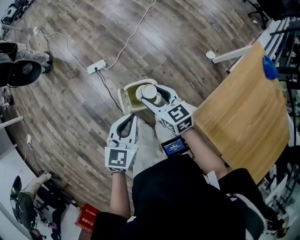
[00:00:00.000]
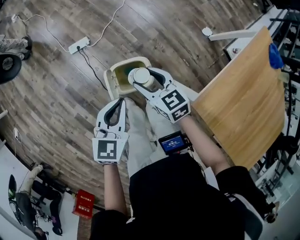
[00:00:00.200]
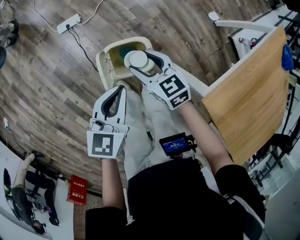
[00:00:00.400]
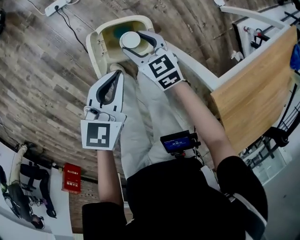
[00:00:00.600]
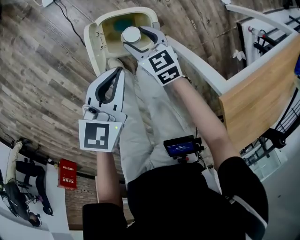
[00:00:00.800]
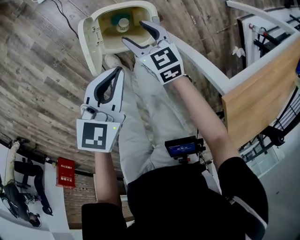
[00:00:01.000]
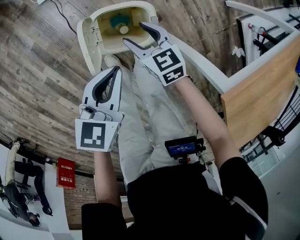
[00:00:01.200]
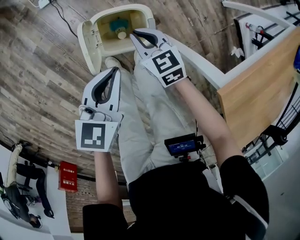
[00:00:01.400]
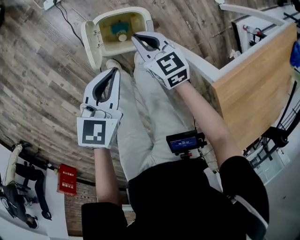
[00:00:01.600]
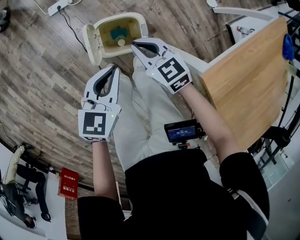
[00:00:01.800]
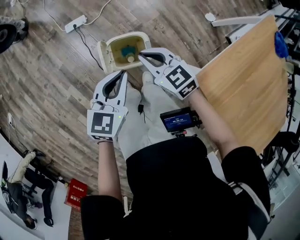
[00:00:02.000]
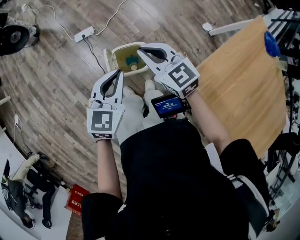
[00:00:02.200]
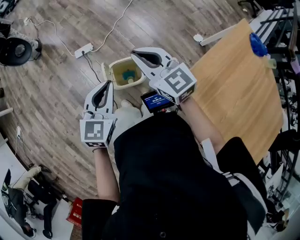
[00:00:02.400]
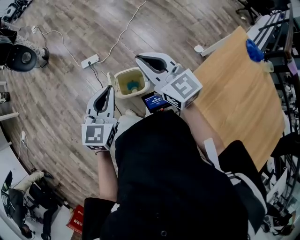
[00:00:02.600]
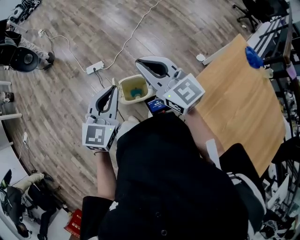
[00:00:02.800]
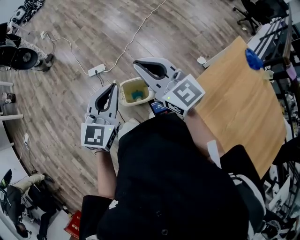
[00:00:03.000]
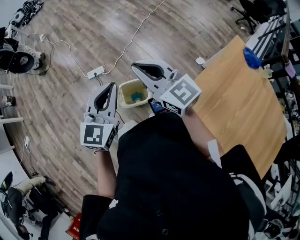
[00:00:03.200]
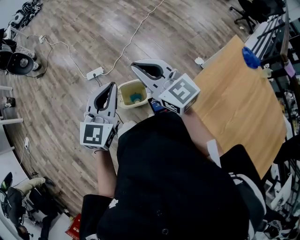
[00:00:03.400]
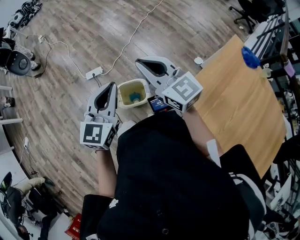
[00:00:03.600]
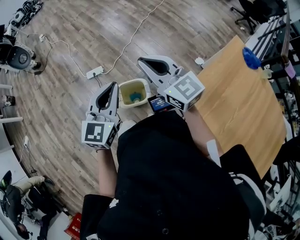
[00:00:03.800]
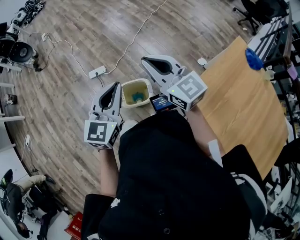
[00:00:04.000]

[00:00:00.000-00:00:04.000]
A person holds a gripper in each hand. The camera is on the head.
00:00:00.000 to 00:00:01.400: Both grippers move downward, about 30 cm. The right gripper closes up.
00:00:01.400 to 00:00:02.600: Both grippers travel together upward, approximately 40 cm. The right gripper tips its fingers upward by some 40 degrees. The left gripper changes its angle by roughly 30 degrees.
00:00:02.600 to 00:00:04.000: The left gripper shifts approximately 5 cm upward. Meanwhile the right gripper changes place by some 5 cm.

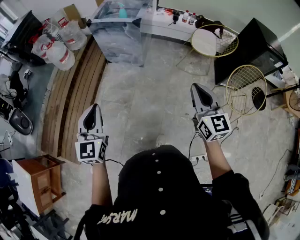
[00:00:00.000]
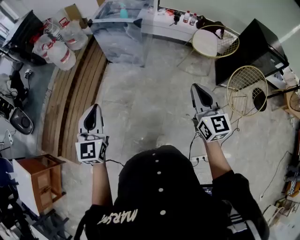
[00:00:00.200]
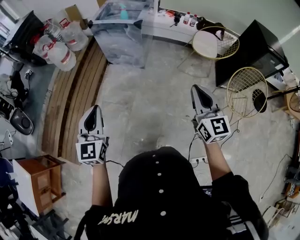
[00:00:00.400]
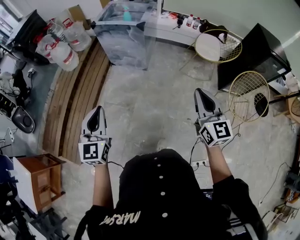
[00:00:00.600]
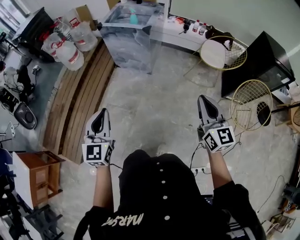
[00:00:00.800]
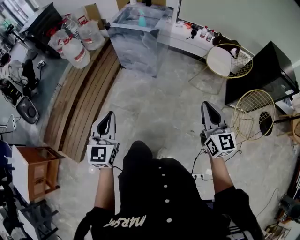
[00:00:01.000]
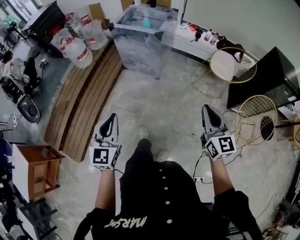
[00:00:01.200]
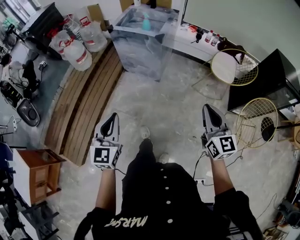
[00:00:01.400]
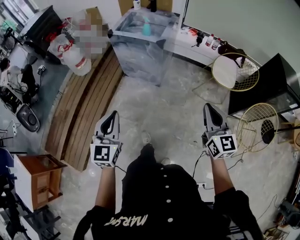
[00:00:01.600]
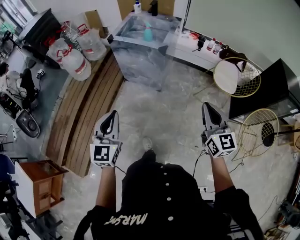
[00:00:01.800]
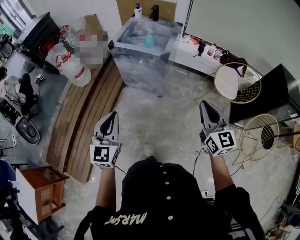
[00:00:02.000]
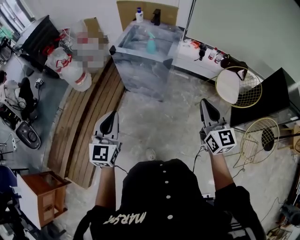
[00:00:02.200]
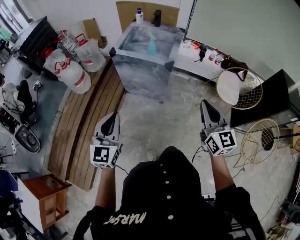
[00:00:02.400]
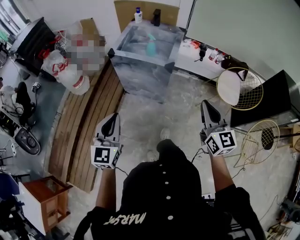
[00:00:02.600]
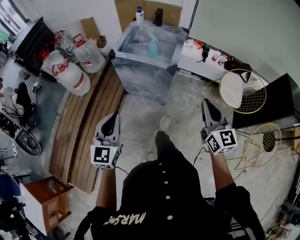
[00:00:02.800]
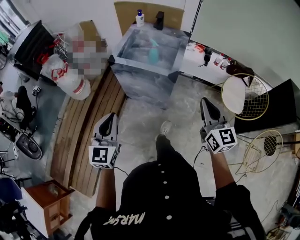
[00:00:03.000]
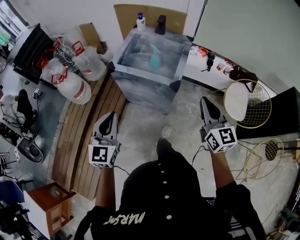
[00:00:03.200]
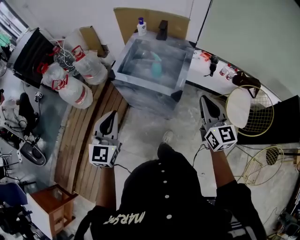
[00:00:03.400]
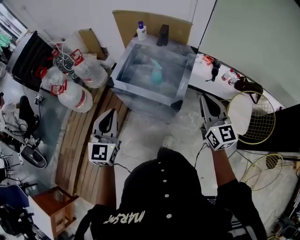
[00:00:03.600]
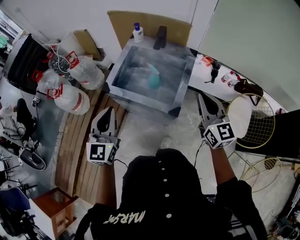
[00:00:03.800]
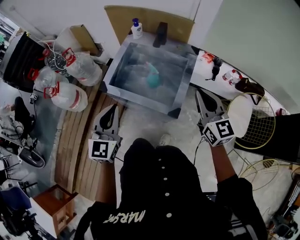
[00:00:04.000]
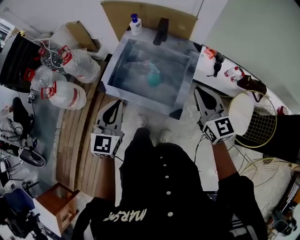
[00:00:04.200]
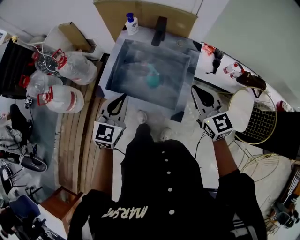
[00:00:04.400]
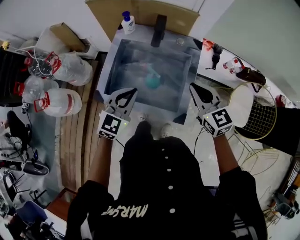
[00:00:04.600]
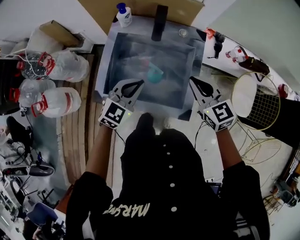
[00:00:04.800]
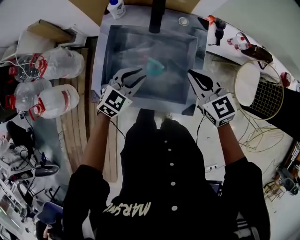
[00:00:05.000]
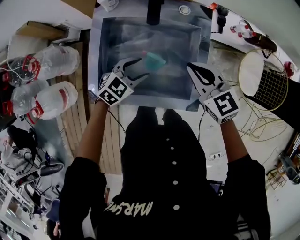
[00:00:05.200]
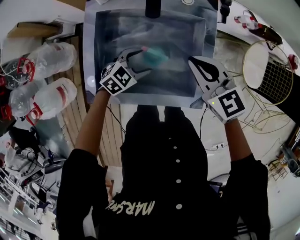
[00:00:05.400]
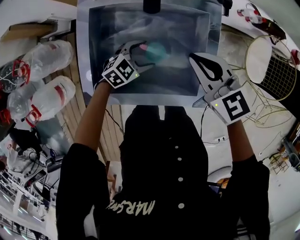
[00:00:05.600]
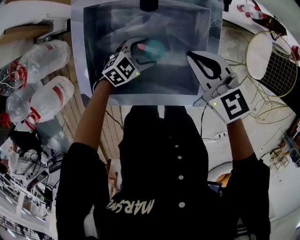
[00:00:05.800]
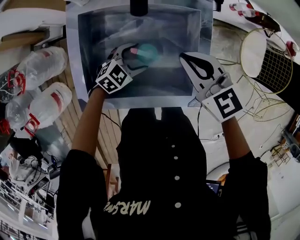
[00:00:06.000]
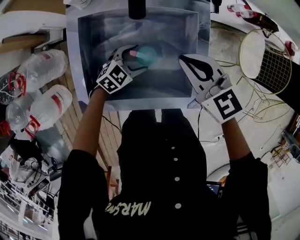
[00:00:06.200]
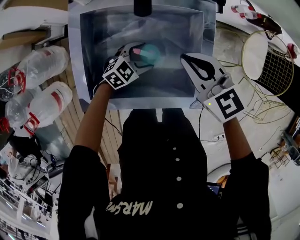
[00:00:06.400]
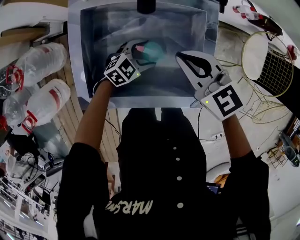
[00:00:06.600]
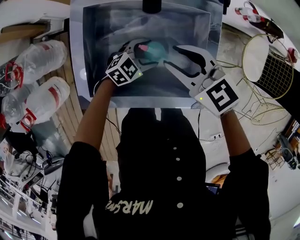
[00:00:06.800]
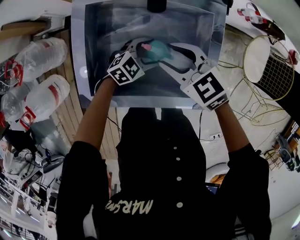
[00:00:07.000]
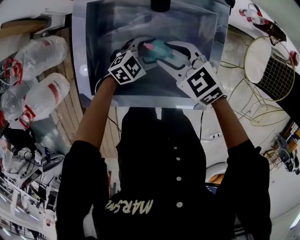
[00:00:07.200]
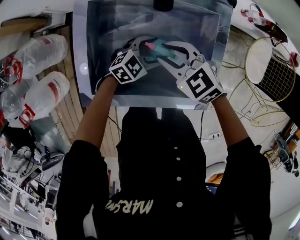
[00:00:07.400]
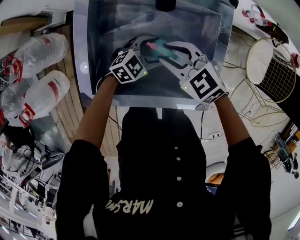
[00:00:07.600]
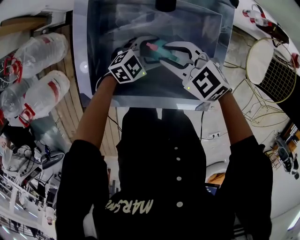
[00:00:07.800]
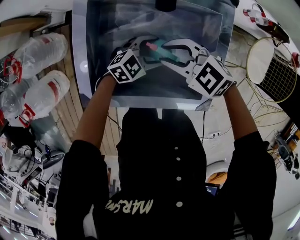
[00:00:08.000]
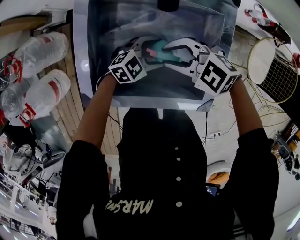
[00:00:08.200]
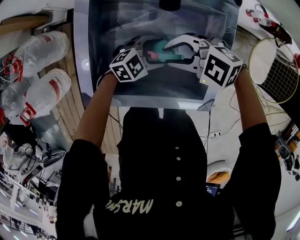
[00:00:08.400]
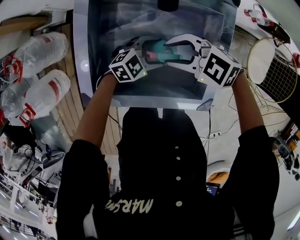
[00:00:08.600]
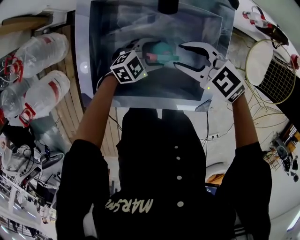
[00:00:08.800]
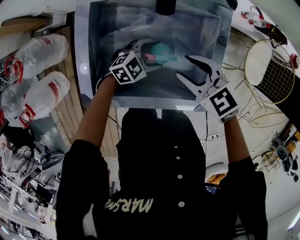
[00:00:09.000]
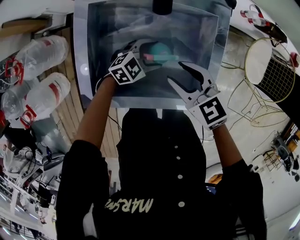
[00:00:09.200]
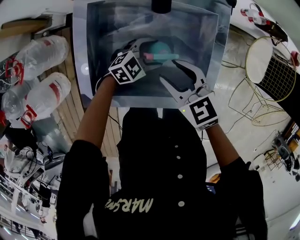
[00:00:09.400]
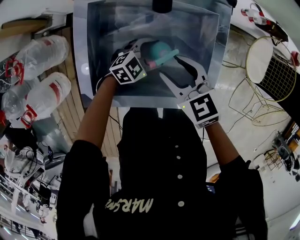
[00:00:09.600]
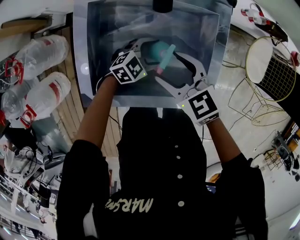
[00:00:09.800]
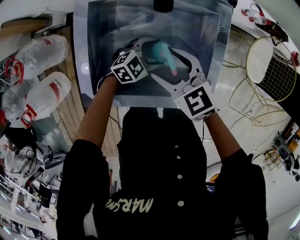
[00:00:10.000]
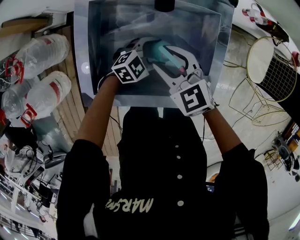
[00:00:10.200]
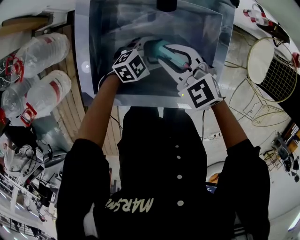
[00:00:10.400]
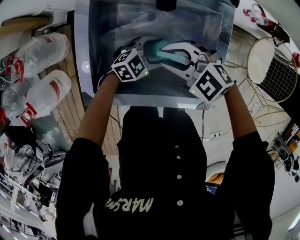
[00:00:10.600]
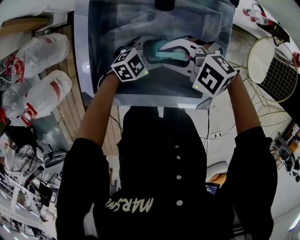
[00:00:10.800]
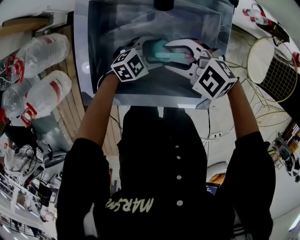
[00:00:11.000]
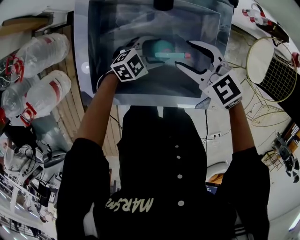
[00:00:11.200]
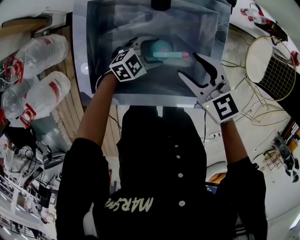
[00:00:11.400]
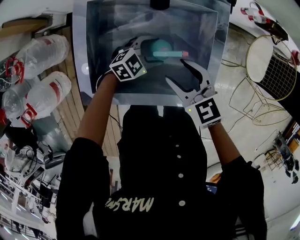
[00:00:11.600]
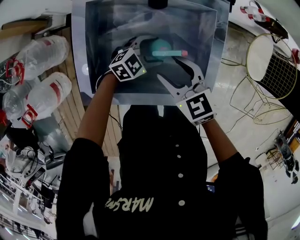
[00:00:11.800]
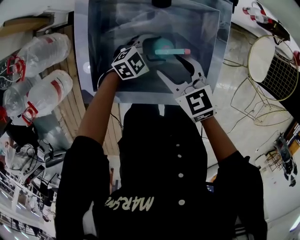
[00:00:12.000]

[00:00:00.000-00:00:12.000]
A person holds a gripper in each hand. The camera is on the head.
00:00:00.000 to 00:00:01.600: Both grippers move forward, approximately 15 cm.
00:00:01.600 to 00:00:03.000: Both grippers move forward, approximately 30 cm.
00:00:03.000 to 00:00:04.400: The two grippers travel together, forward, roughly 40 cm.
00:00:04.400 to 00:00:06.000: The right gripper shifts about 15 cm downward. The left gripper travels downward by roughly 35 cm, swivels roughly 60 degrees, and opens its fingers.
00:00:06.000 to 00:00:07.600: The right gripper travels downward by approximately 10 cm, swivels some 20 degrees, and opens.
00:00:07.600 to 00:00:09.000: The right gripper shifts by some 5 cm.
00:00:09.000 to 00:00:10.400: The right gripper moves some 5 cm.
00:00:10.400 to 00:00:12.000: The right gripper changes its angle by approximately 20 degrees, and opens.

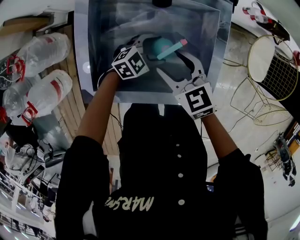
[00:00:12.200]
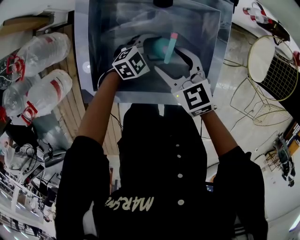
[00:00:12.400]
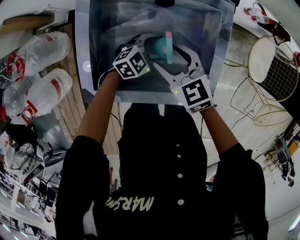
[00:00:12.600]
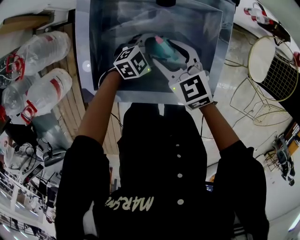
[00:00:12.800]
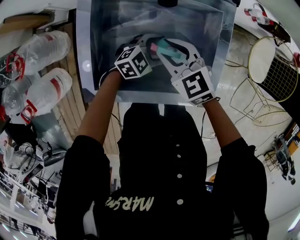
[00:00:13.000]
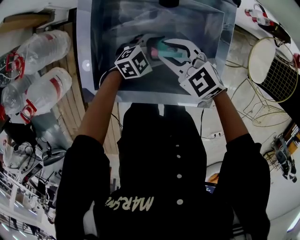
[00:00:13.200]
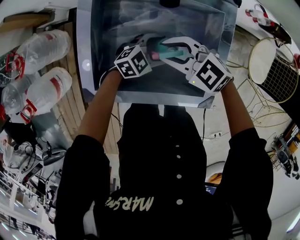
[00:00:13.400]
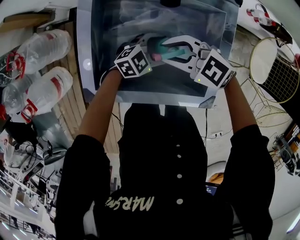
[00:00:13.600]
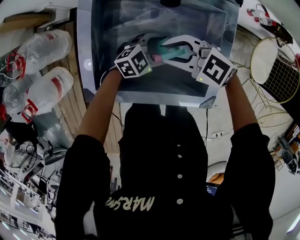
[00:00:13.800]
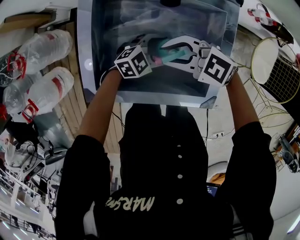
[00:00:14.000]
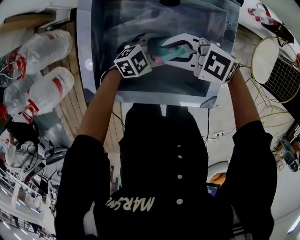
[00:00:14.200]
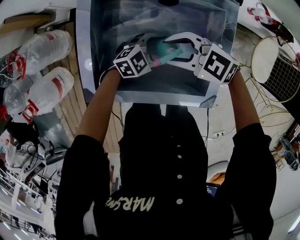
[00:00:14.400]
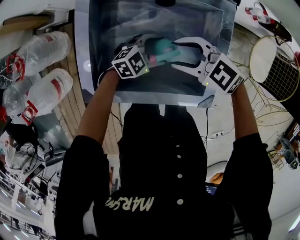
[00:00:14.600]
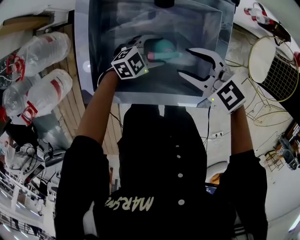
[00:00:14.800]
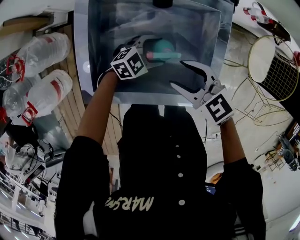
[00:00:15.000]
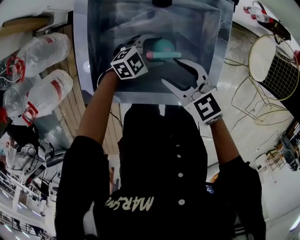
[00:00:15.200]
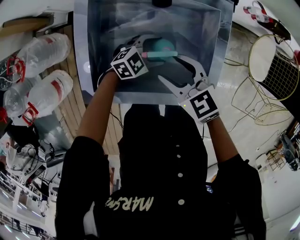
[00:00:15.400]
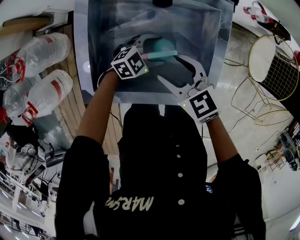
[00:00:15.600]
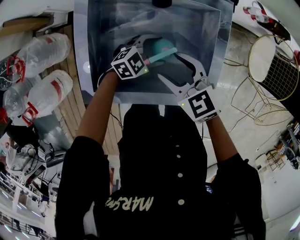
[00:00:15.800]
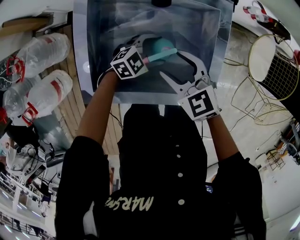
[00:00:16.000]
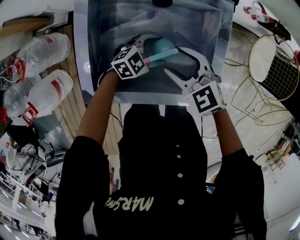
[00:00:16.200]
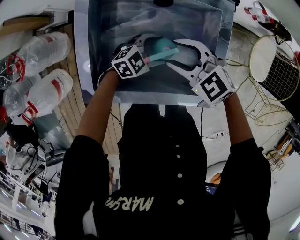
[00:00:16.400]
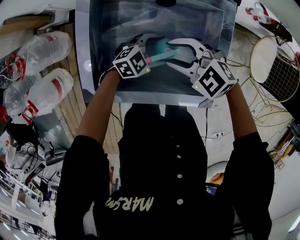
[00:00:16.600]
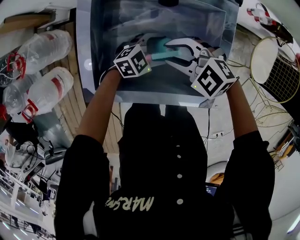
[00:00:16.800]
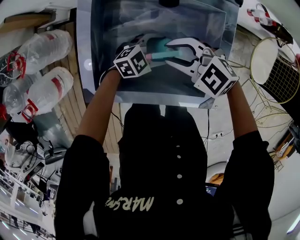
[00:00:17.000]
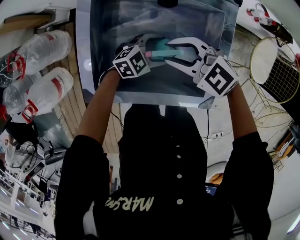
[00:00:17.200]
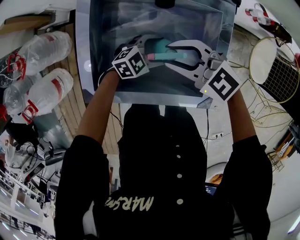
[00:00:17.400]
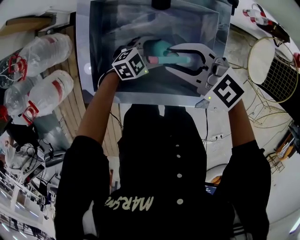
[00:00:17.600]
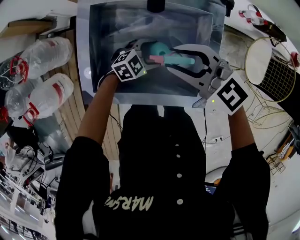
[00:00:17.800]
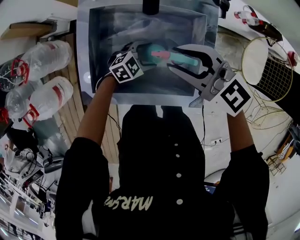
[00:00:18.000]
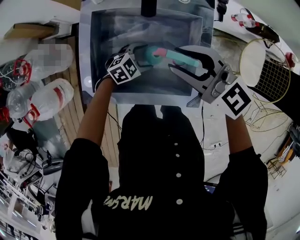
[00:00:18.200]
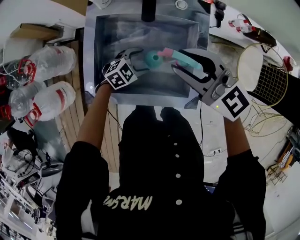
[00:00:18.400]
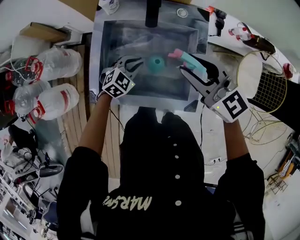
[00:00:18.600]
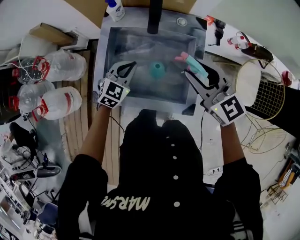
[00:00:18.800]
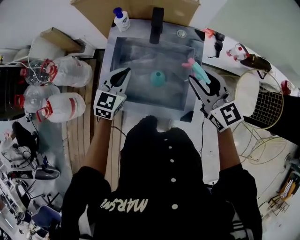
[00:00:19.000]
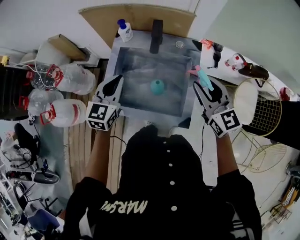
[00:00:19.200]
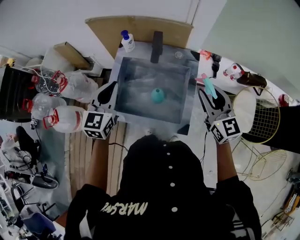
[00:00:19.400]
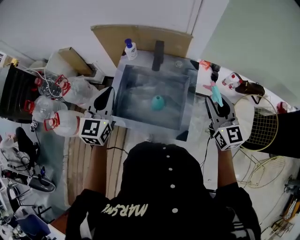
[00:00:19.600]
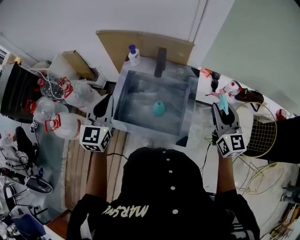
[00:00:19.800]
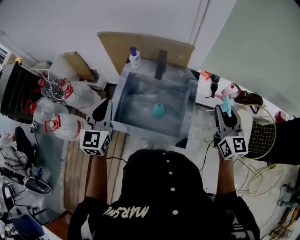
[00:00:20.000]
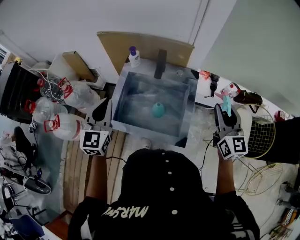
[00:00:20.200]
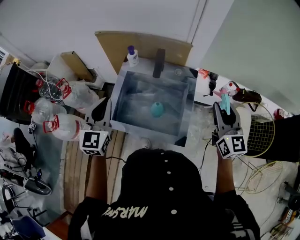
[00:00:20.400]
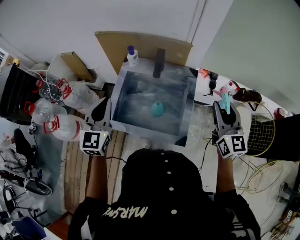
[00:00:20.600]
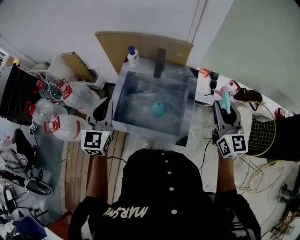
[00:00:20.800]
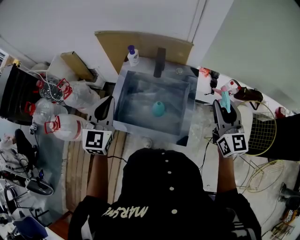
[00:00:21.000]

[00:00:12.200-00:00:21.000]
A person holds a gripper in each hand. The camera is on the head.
00:00:12.200 to 00:00:13.600: The right gripper rotates approximately 40 degrees, and closes up.
00:00:13.600 to 00:00:15.200: The right gripper shifts by roughly 5 cm, changes its angle by about 30 degrees, and opens up.
00:00:15.200 to 00:00:16.600: The right gripper turns by roughly 30 degrees.
00:00:16.600 to 00:00:18.000: The right gripper travels upward by roughly 15 cm, and turns by some 30 degrees.
00:00:18.000 to 00:00:19.600: The left gripper is displaced upward by roughly 40 cm, points its fingers roughly 30 degrees further upward, and closes its fingers, while the right gripper moves roughly 25 cm, and turns by some 40 degrees.
00:00:19.600 to 00:00:21.000: The grippers make only small movements.
